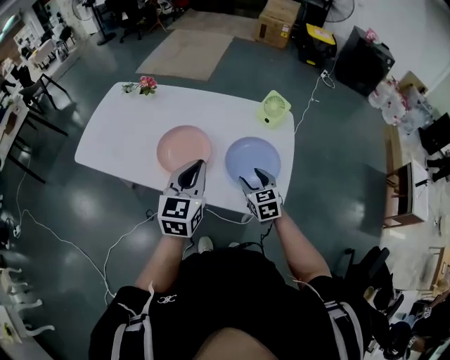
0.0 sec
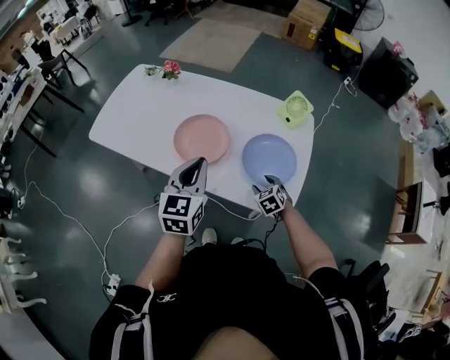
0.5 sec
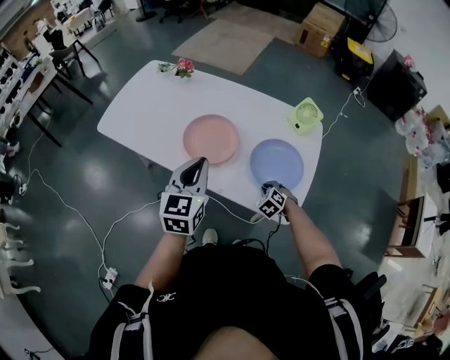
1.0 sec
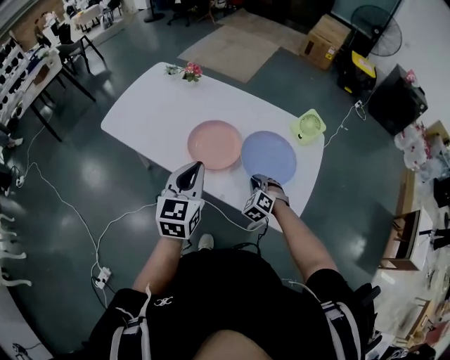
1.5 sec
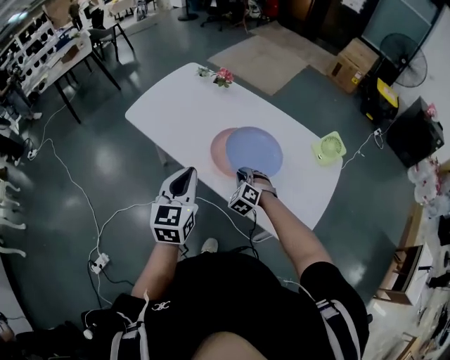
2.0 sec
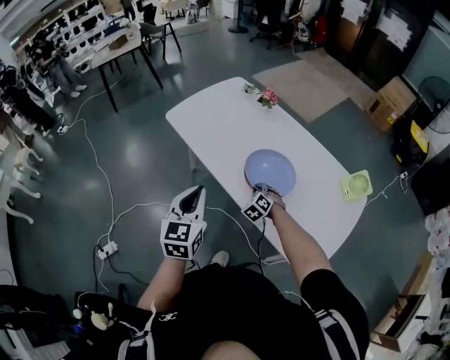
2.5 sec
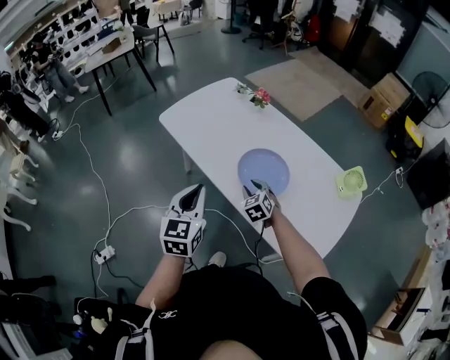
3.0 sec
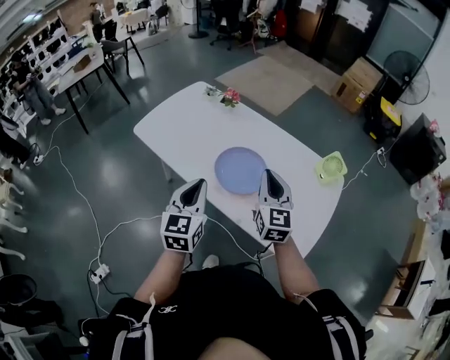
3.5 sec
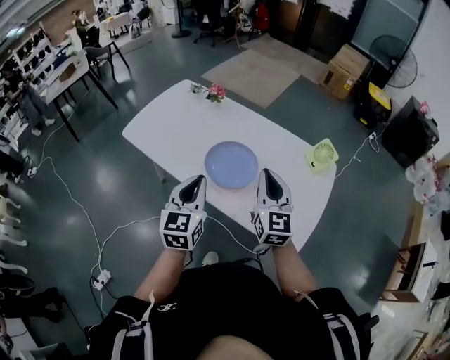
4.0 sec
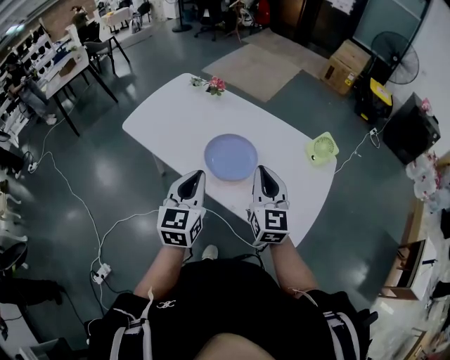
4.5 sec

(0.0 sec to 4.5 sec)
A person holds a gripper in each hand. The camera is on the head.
0.0 sec - 2.0 sec: Both grippers travel together to the left, approximately 20 cm. The right gripper rolls counterclockwise, seen from behind, by some 60 degrees, and closes its fingers. The left gripper changes its angle by about 30 degrees.
2.0 sec - 4.5 sec: The left gripper ends up approximately 5 cm from where it was. Meanwhile the right gripper travels upward by approximately 25 cm, points its fingers approximately 40 degrees further upward, and opens, then closes again.

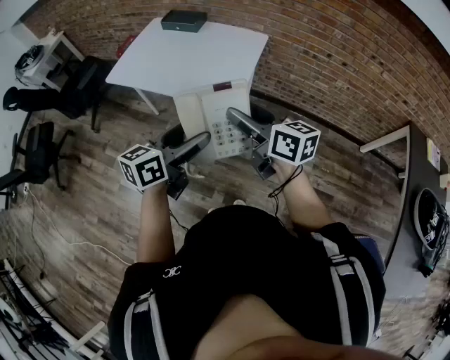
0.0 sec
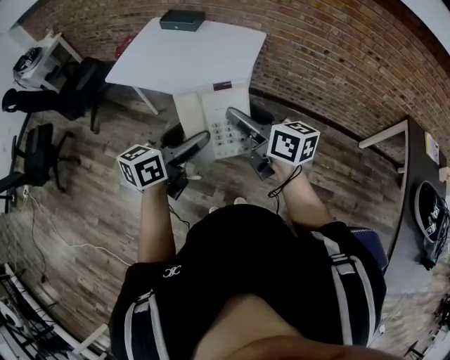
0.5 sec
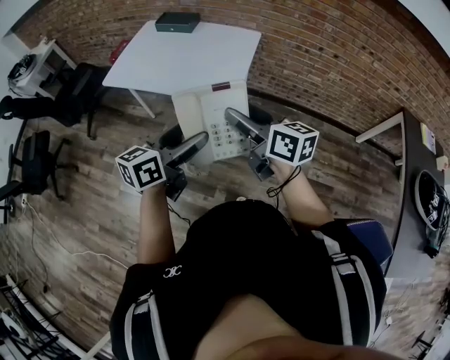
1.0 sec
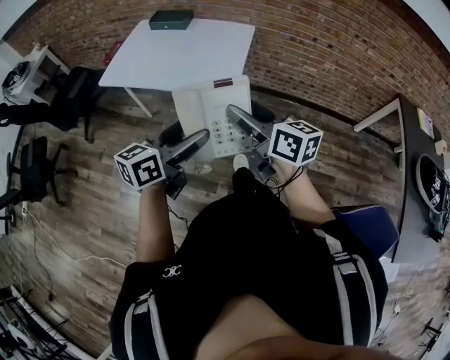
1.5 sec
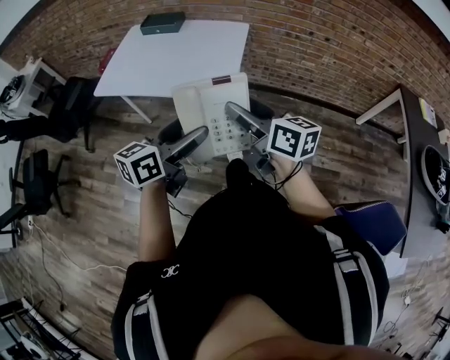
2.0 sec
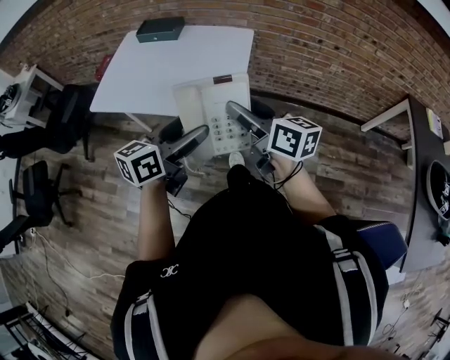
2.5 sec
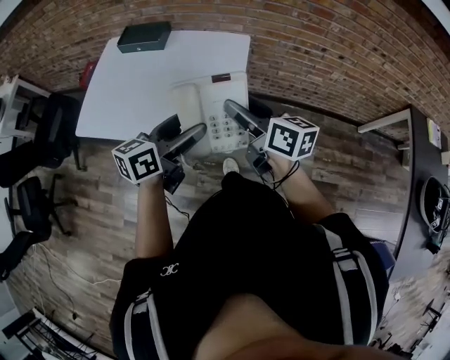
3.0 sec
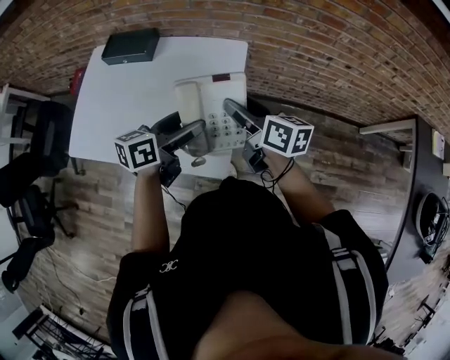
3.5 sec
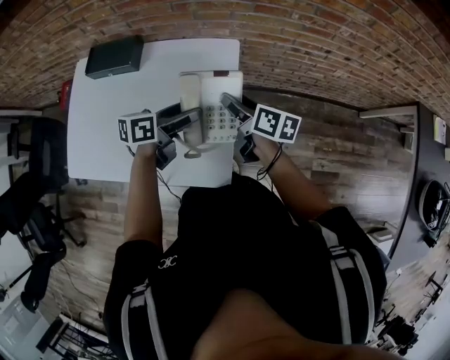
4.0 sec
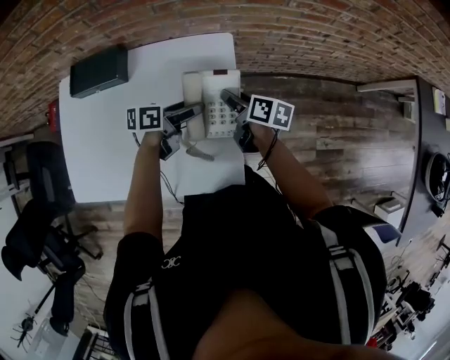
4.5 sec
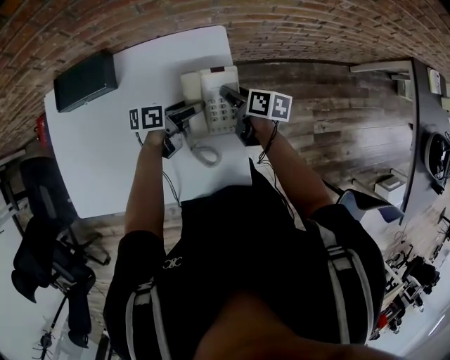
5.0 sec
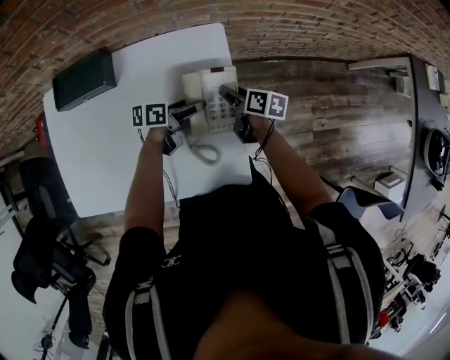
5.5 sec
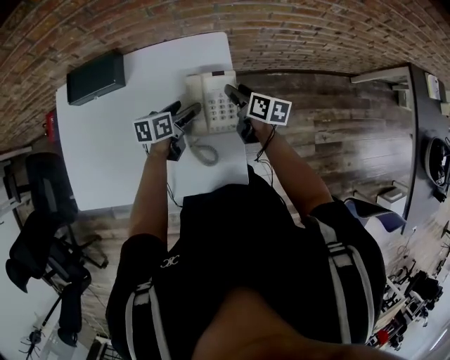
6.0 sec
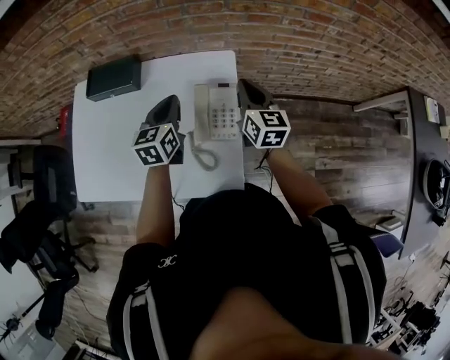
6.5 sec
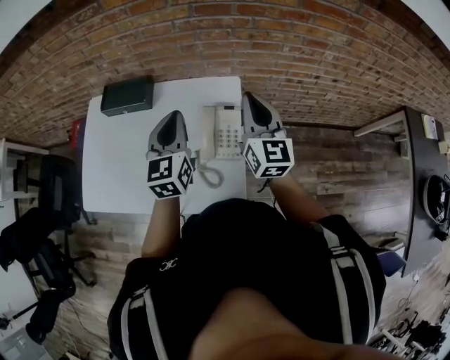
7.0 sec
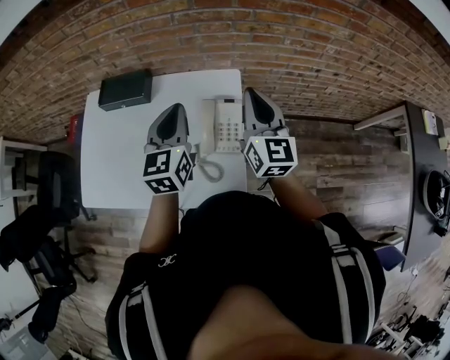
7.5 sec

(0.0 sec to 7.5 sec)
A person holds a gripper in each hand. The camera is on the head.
2.0 sec - 4.0 sec: The two grippers travel together, forward, roughly 50 cm. The right gripper swivels some 30 degrees. The left gripper rotates some 30 degrees.
4.0 sec - 5.5 sec: Both grippers move downward, roughly 15 cm. The left gripper turns by approximately 20 degrees.
5.5 sec - 7.5 sec: Both grippers travel together upward, about 30 cm. The left gripper changes its angle by approximately 70 degrees, and closes up. The right gripper points its fingers approximately 40 degrees further upward, and closes up.

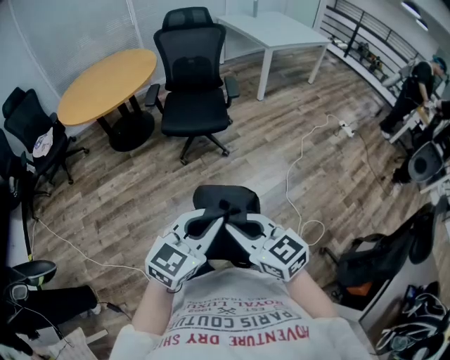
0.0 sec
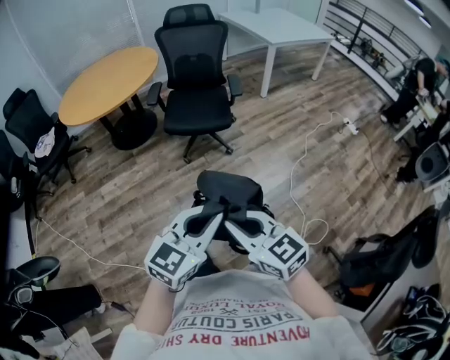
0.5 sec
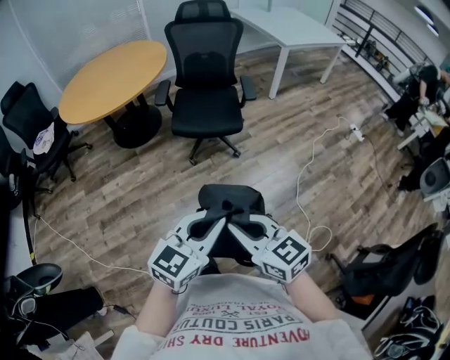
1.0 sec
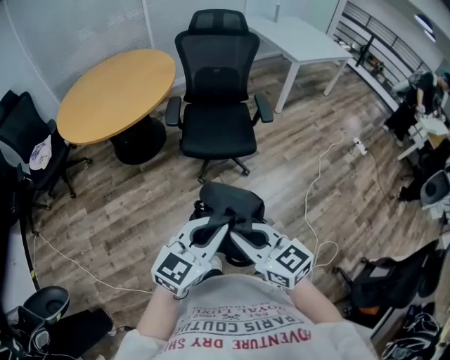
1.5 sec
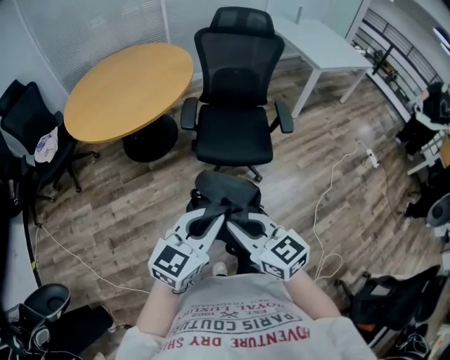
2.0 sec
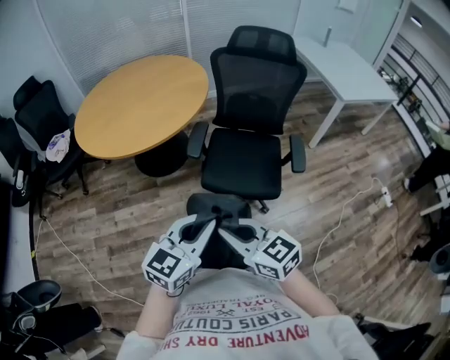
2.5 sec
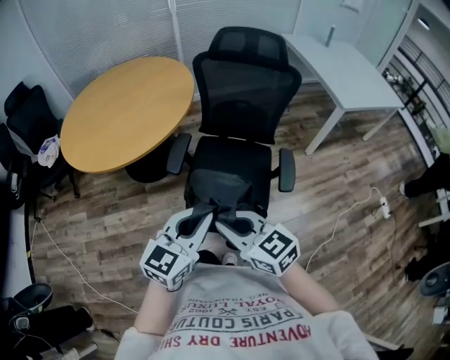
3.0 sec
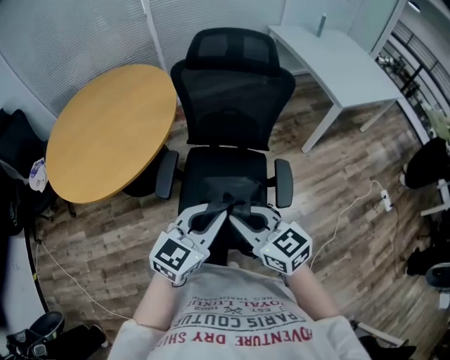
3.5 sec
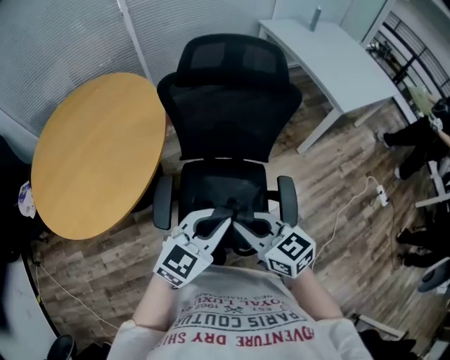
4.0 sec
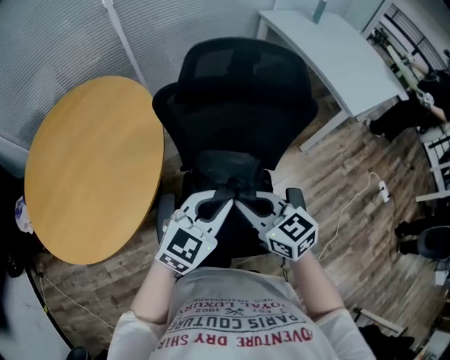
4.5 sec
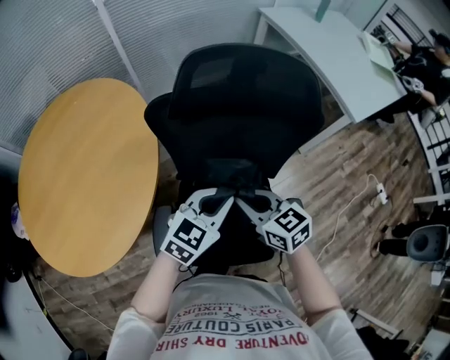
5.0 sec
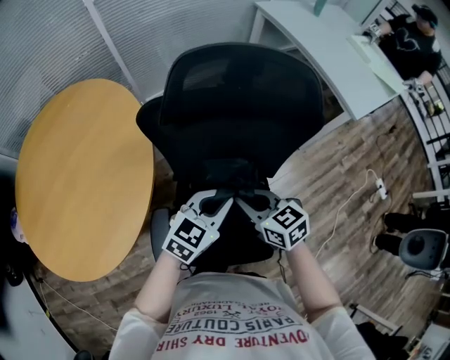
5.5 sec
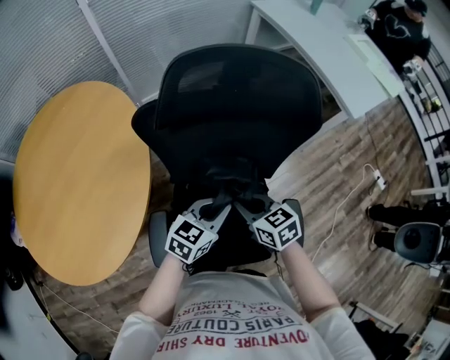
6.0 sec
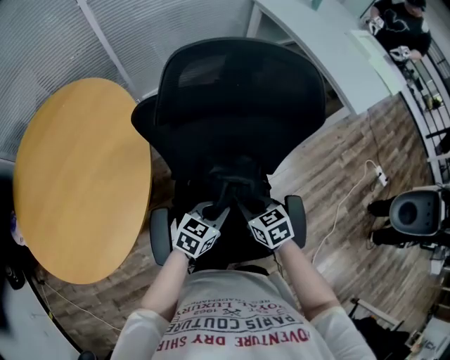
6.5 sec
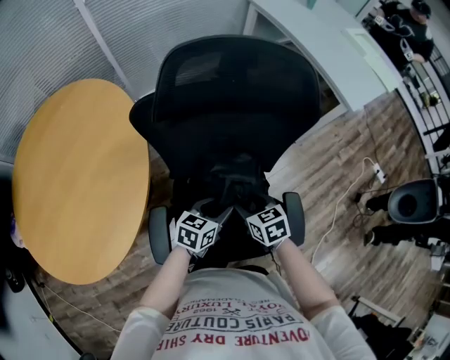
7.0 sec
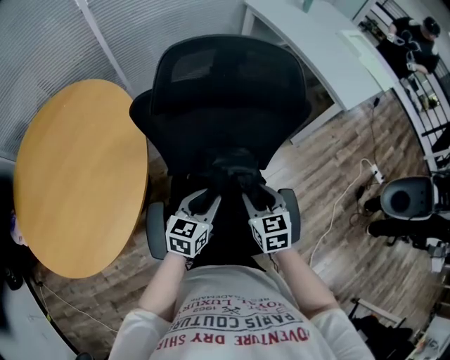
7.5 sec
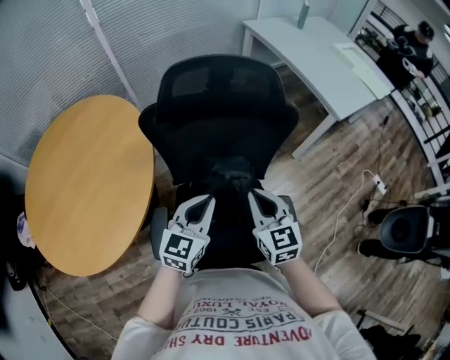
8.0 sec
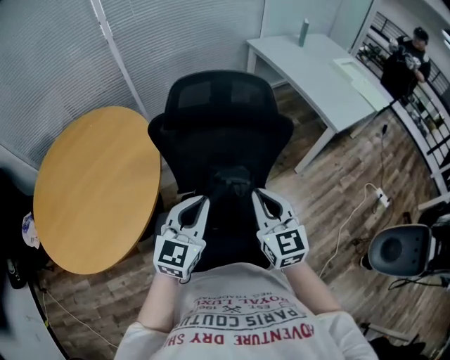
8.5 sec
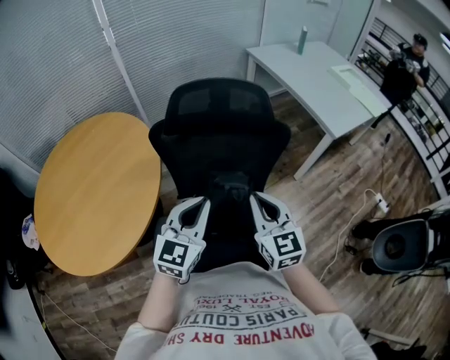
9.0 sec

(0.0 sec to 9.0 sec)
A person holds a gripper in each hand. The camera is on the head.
0.0 sec - 2.0 sec: Both grippers travel together forward and to the left, roughly 40 cm.
2.0 sec - 4.5 sec: The two grippers travel together, forward, about 70 cm.
4.5 sec - 7.0 sec: Both grippers travel together downward, about 20 cm. The left gripper swivels roughly 40 degrees, and opens its fingers, while the right gripper turns by roughly 30 degrees, and opens.
7.0 sec - 9.0 sec: Both grippers move upward, some 25 cm. The left gripper swivels approximately 50 degrees, and closes, while the right gripper angles its fingers upward, by approximately 40 degrees, and closes its fingers.

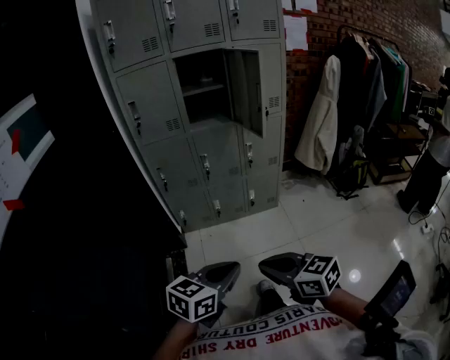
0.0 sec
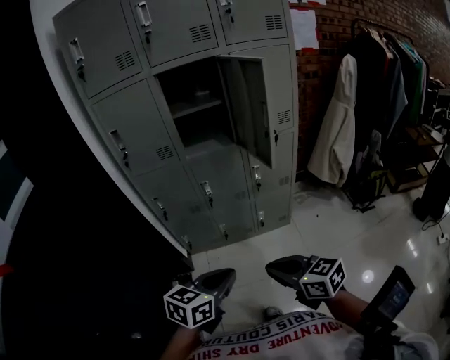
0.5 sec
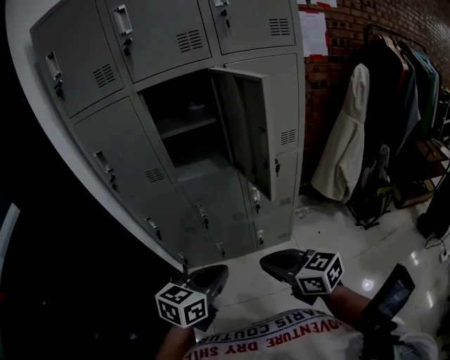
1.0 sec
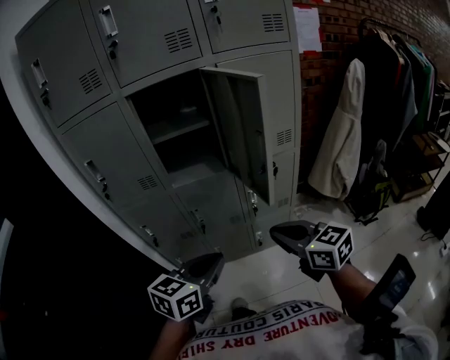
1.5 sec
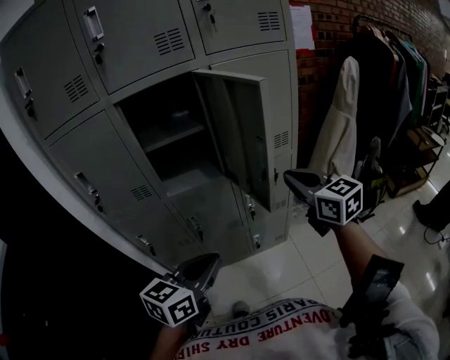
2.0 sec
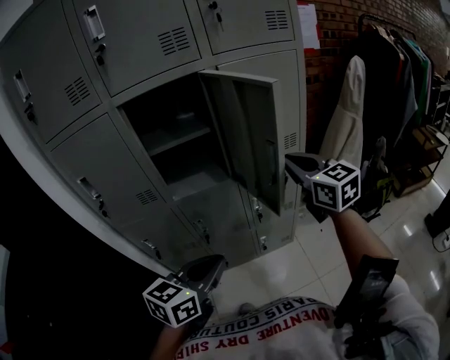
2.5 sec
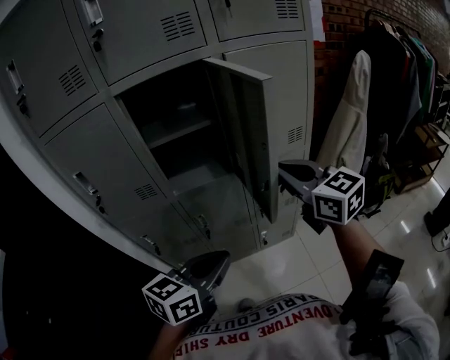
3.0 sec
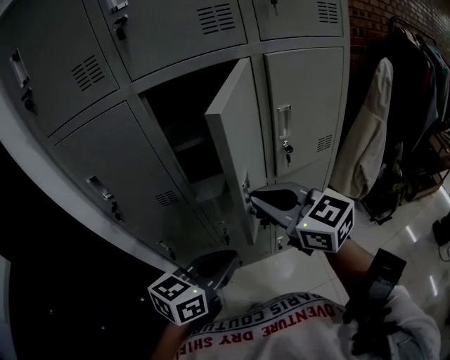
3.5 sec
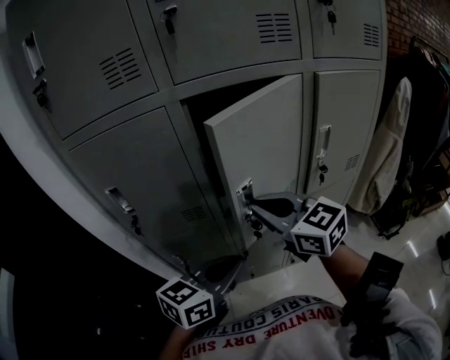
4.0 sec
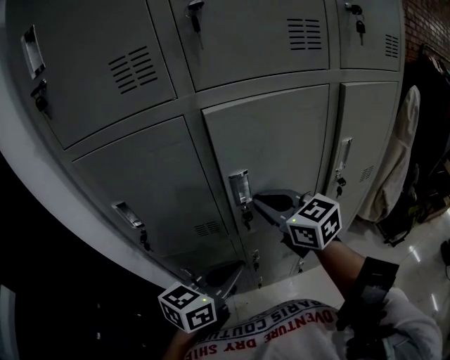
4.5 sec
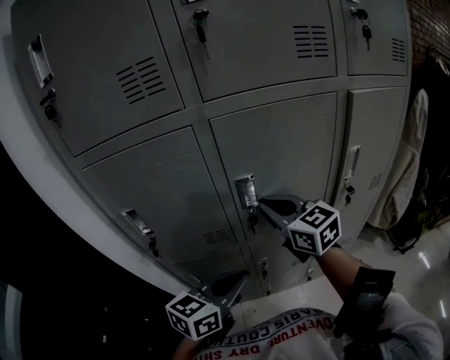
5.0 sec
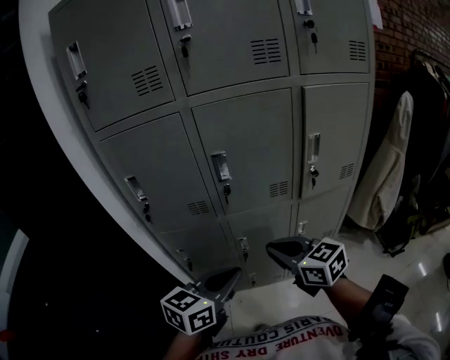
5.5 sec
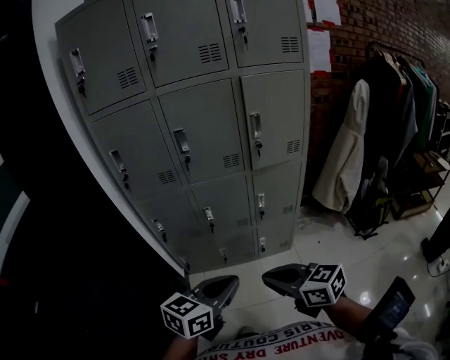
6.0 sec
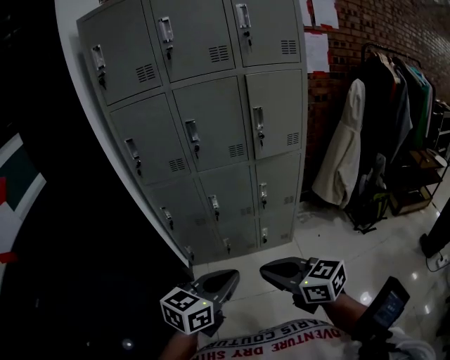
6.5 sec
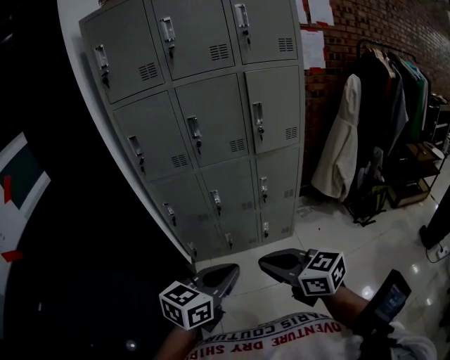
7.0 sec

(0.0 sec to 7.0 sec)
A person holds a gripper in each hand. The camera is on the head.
0.0 sec - 2.0 sec: The two grippers travel together, forward, about 50 cm. The right gripper rotates approximately 30 degrees.
2.0 sec - 3.5 sec: The right gripper travels to the left by approximately 20 cm, and turns by approximately 20 degrees, while the left gripper shifts about 10 cm forward and to the left.
3.5 sec - 5.0 sec: The right gripper heads forward and to the left, covering about 20 cm. Meanwhile the left gripper shifts about 15 cm to the left and forward.
5.0 sec - 7.0 sec: The two grippers travel together, backward, roughly 50 cm.
